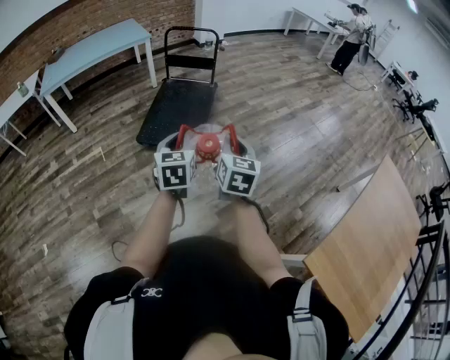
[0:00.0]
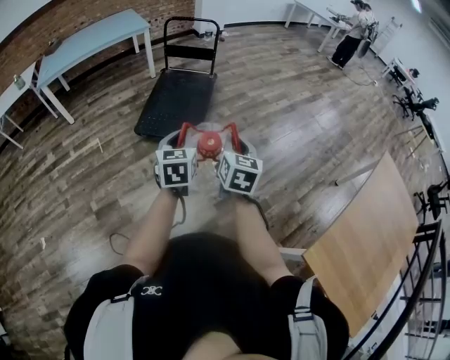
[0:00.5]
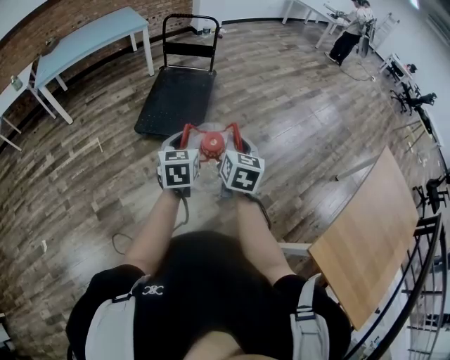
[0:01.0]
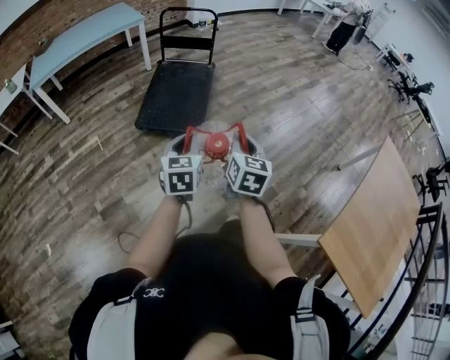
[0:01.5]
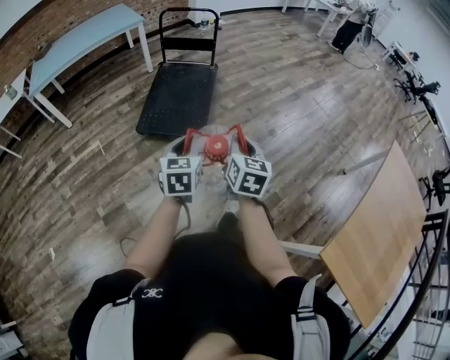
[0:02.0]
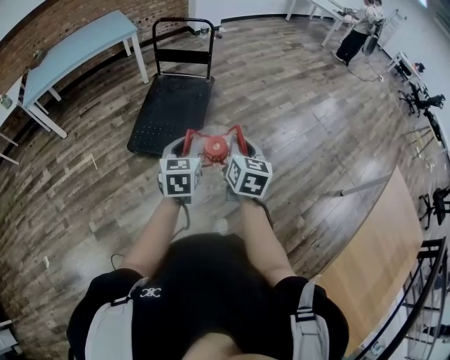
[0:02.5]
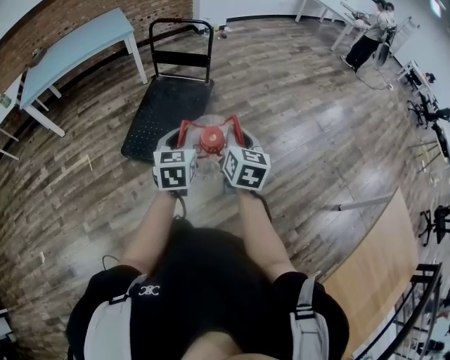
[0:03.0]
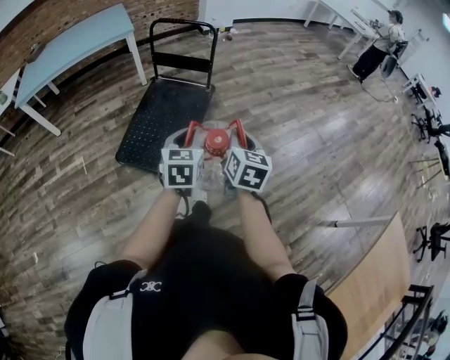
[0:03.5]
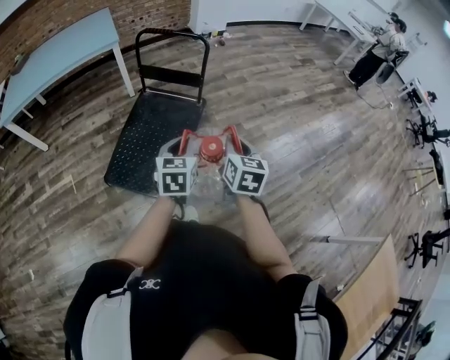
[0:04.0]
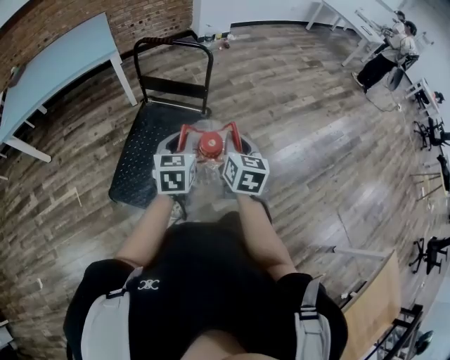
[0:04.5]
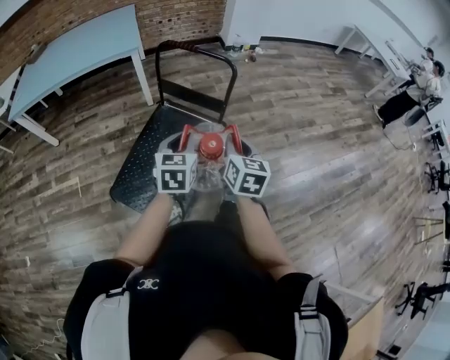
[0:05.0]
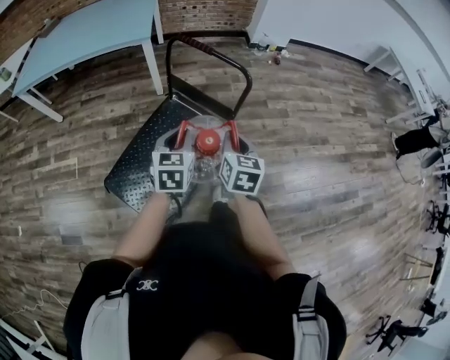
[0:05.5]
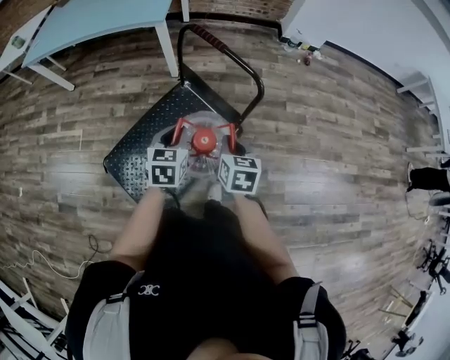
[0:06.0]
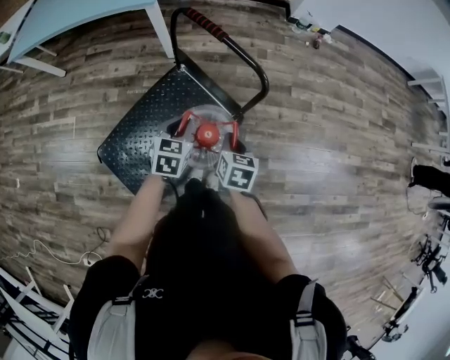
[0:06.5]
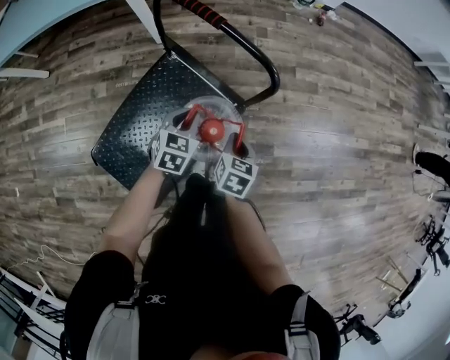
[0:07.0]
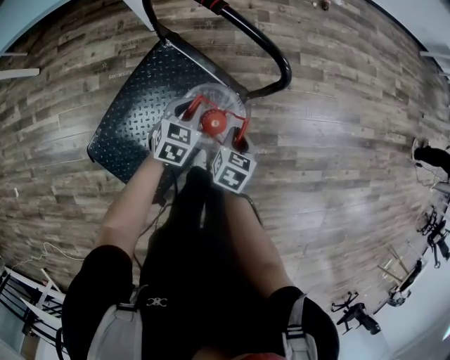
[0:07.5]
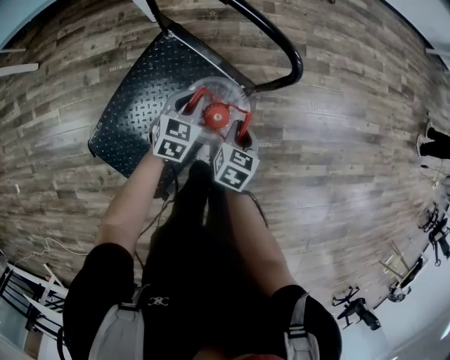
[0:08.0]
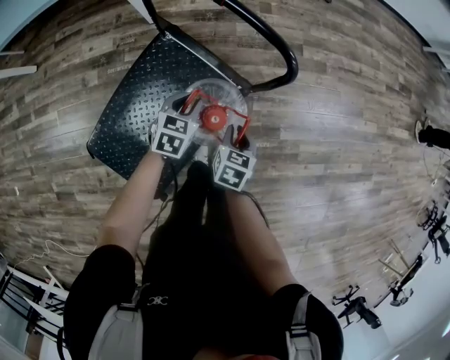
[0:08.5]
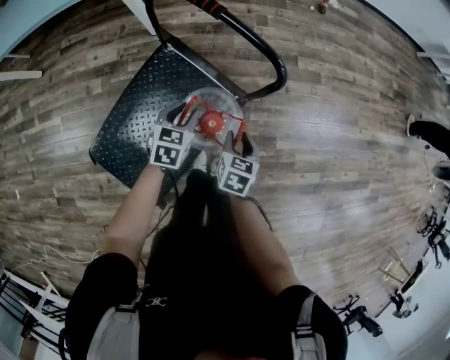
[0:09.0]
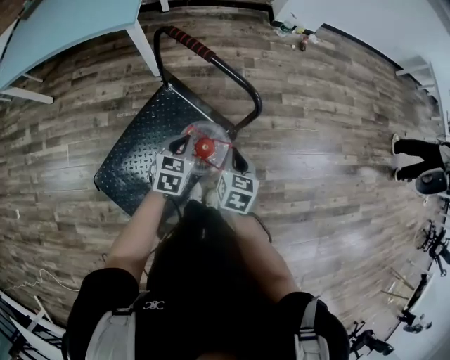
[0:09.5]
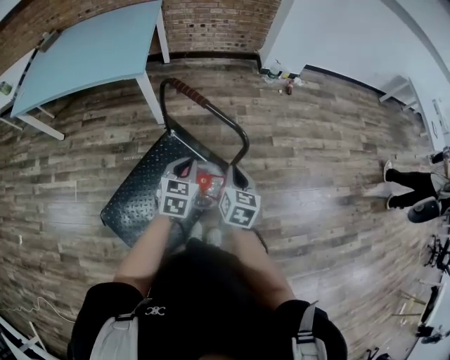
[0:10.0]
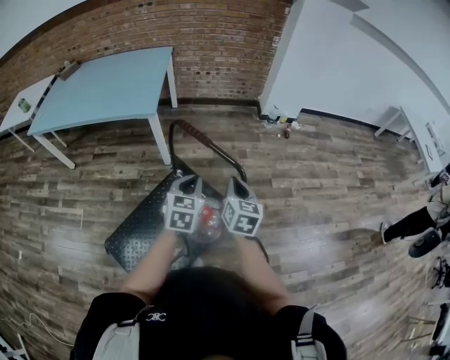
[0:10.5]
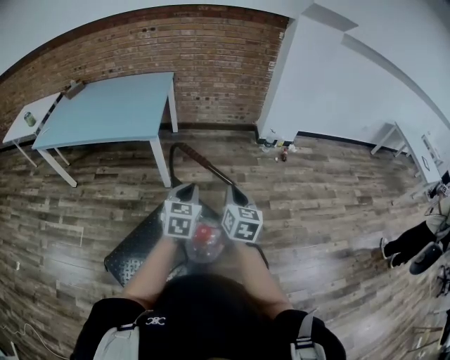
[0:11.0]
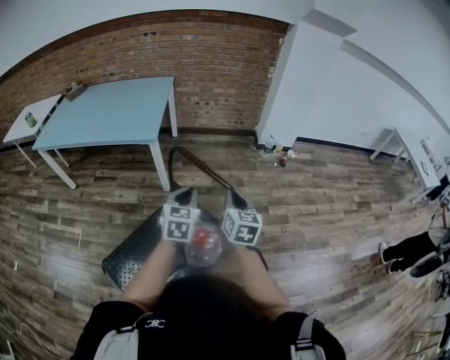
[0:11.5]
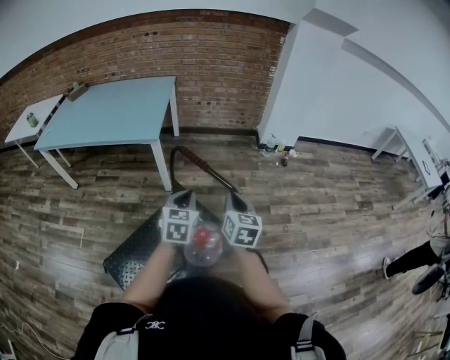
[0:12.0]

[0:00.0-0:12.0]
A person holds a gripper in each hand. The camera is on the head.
0:00.0 to 0:02.0: The two grippers go about 5 cm downward.
0:02.0 to 0:04.0: Both grippers are carried forward, some 50 cm.
0:04.0 to 0:06.0: The right gripper ends up roughly 40 cm from where it was, and rotates roughly 40 degrees; the left gripper shifts by approximately 40 cm, and turns by approximately 30 degrees.
0:06.0 to 0:08.0: Both grippers travel together downward, some 25 cm. The left gripper turns by roughly 30 degrees. Meanwhile the right gripper turns by about 30 degrees.
0:08.0 to 0:10.0: Both grippers travel together upward, about 25 cm. The left gripper opens, then closes again. The right gripper changes its angle by some 20 degrees, and opens, then closes once more.
0:10.0 to 0:12.0: Both grippers travel together upward, about 10 cm.

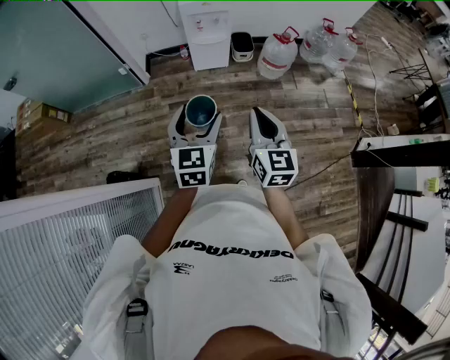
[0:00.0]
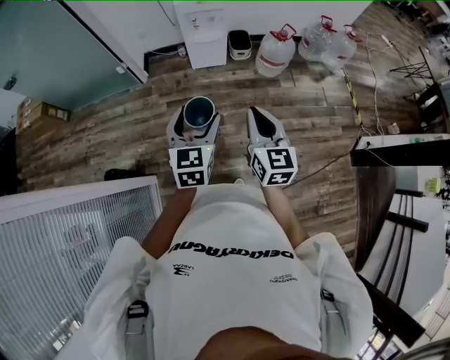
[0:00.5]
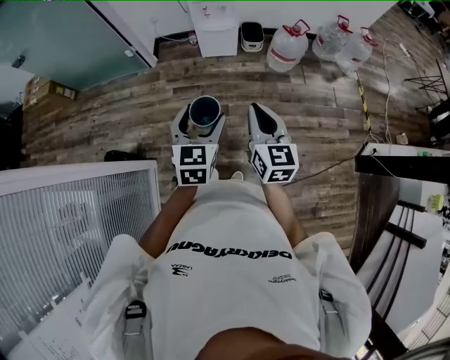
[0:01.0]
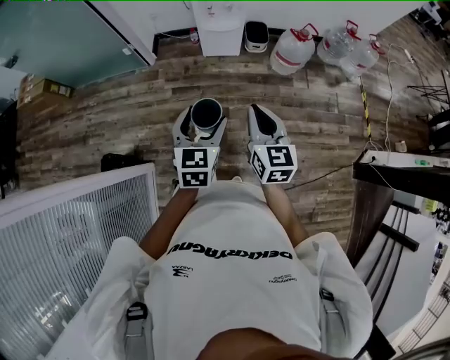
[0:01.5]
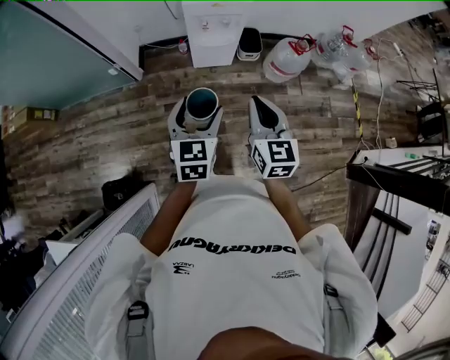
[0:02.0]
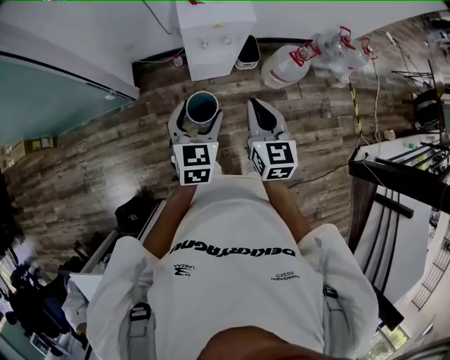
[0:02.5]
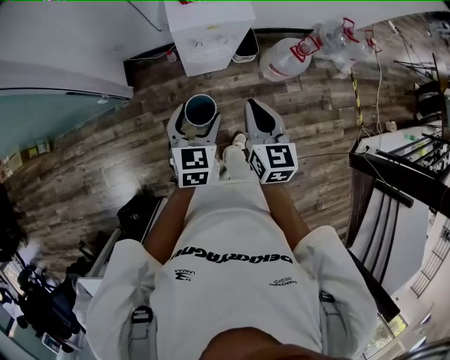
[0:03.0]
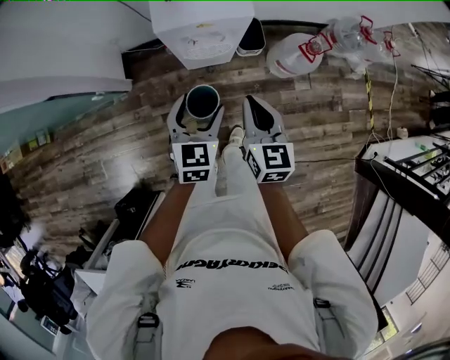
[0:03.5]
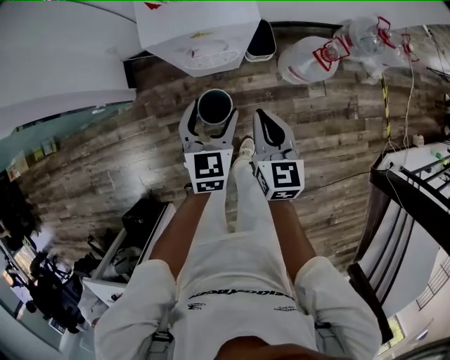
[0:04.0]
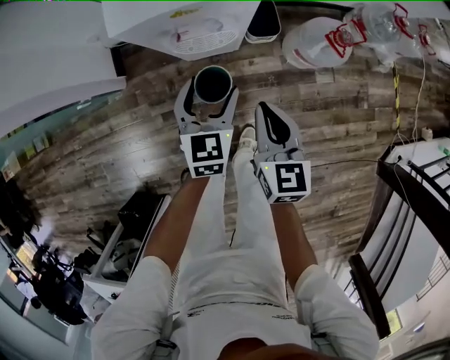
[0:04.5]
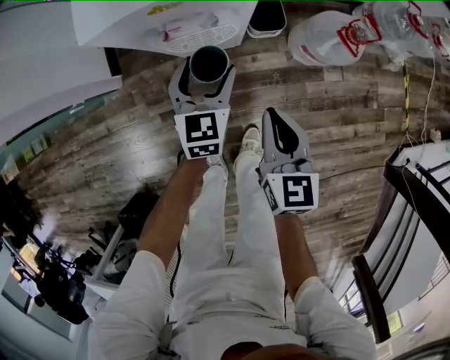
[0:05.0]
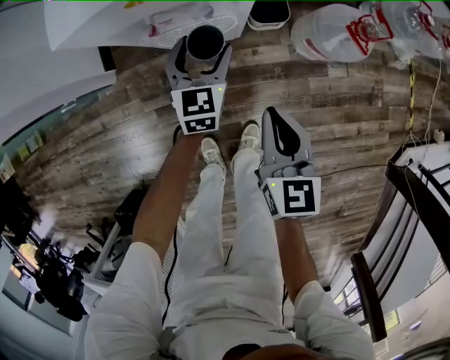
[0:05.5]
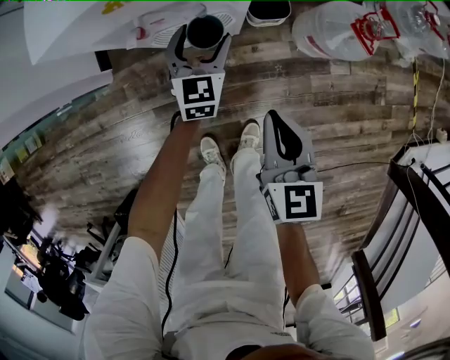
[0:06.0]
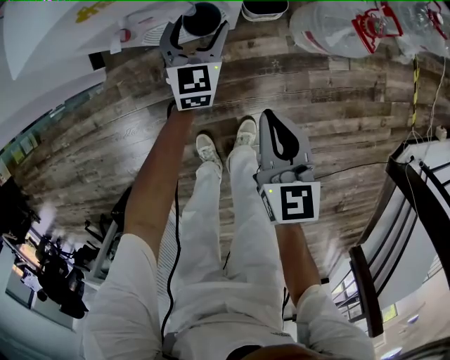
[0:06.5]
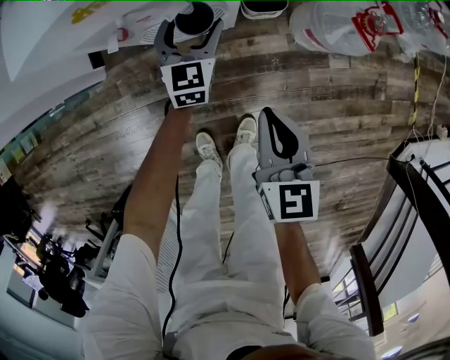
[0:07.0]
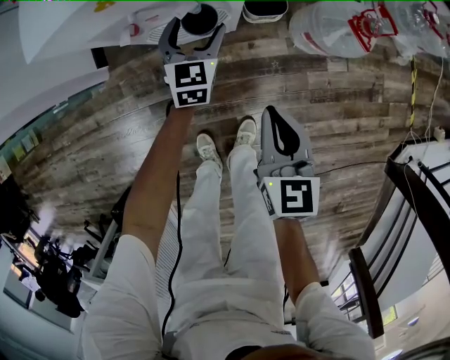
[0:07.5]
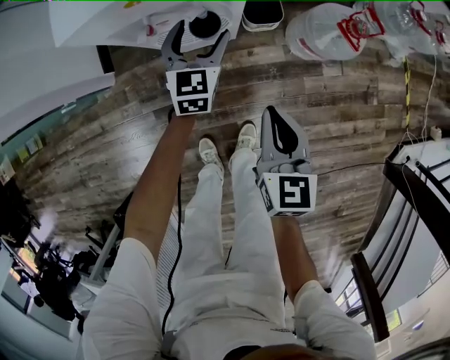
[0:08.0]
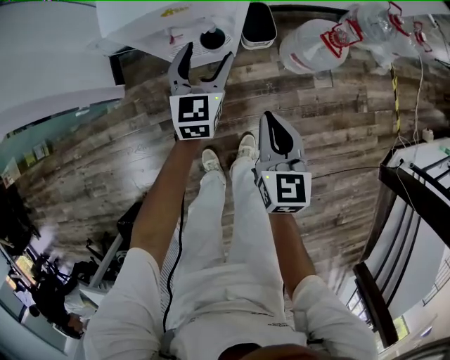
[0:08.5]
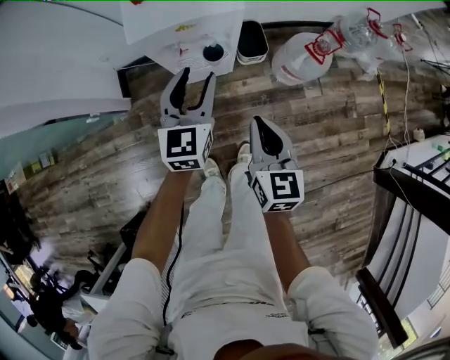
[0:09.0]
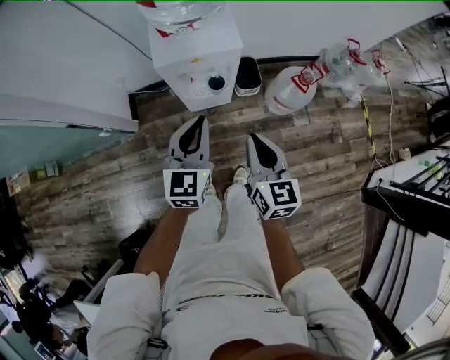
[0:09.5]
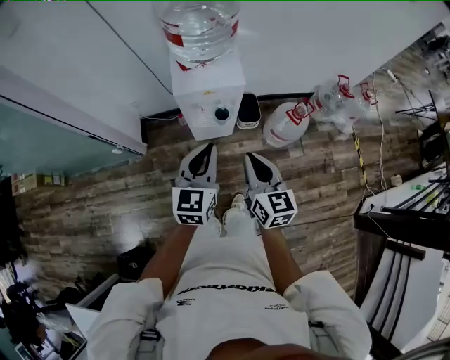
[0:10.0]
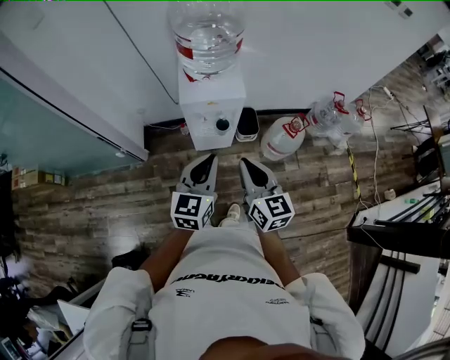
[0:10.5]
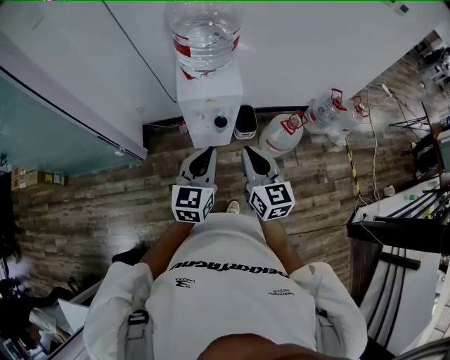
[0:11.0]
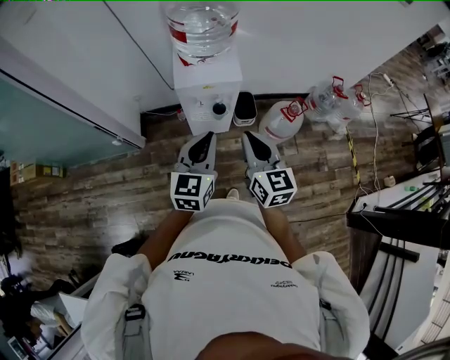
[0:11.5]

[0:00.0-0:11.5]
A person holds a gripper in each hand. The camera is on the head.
0:00.0 to 0:02.0: The two grippers go approximately 30 cm forward.
0:02.0 to 0:04.0: The grippers both shift forward and downward by some 40 cm.
0:04.0 to 0:06.0: The left gripper shifts roughly 35 cm downward and forward, while the right gripper travels downward by roughly 20 cm.
0:06.0 to 0:07.5: There are only small adjustments of the grippers.
0:07.5 to 0:09.5: The right gripper moves upward, approximately 30 cm. The left gripper goes approximately 50 cm upward and backward, and closes.
0:09.5 to 0:11.5: The left gripper moves upward and backward, some 15 cm. The right gripper travels upward by about 15 cm.

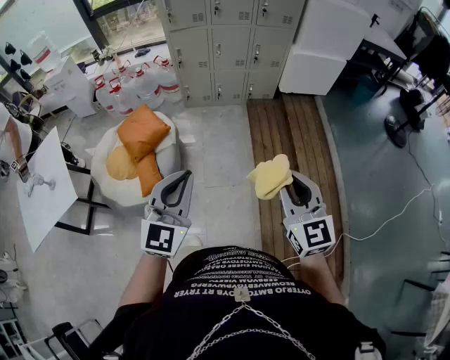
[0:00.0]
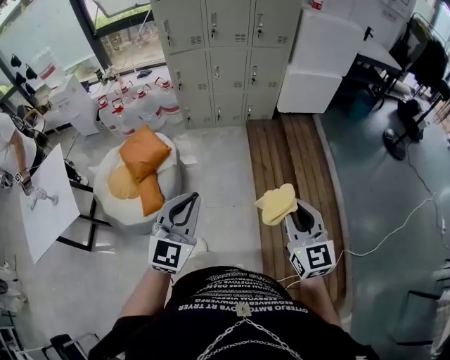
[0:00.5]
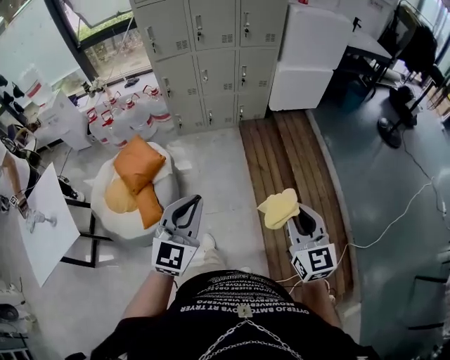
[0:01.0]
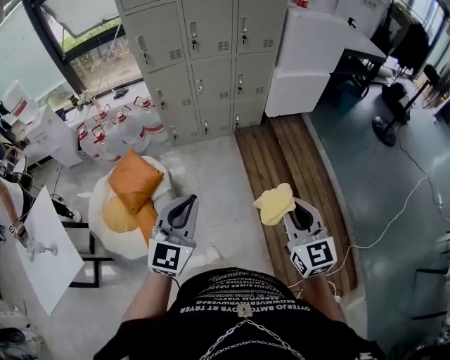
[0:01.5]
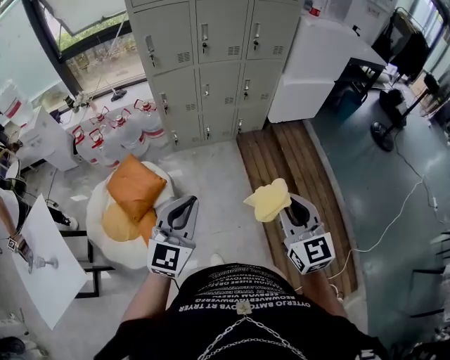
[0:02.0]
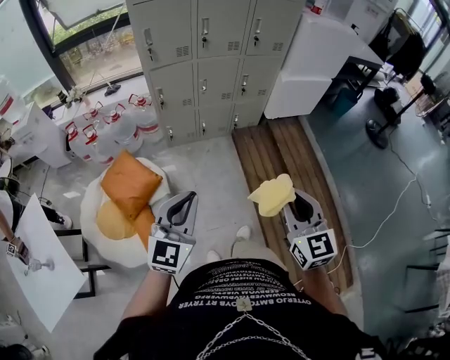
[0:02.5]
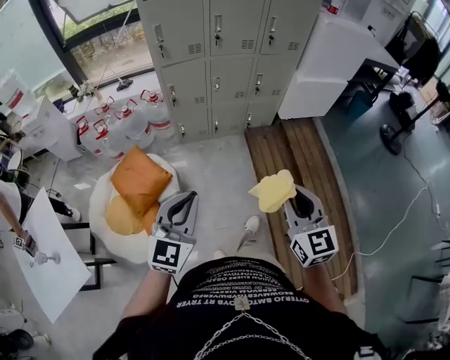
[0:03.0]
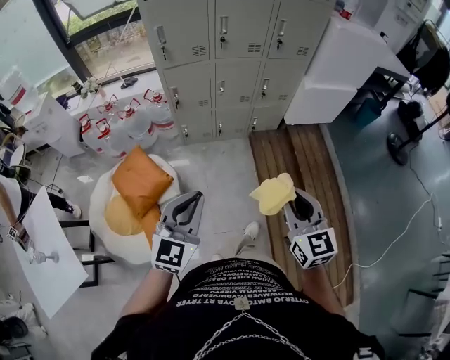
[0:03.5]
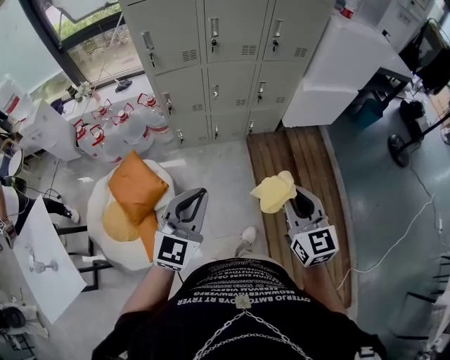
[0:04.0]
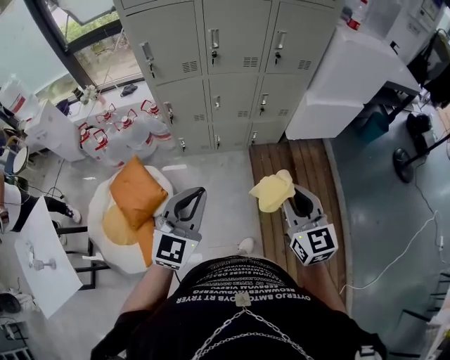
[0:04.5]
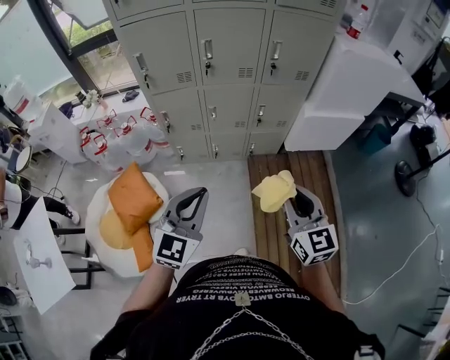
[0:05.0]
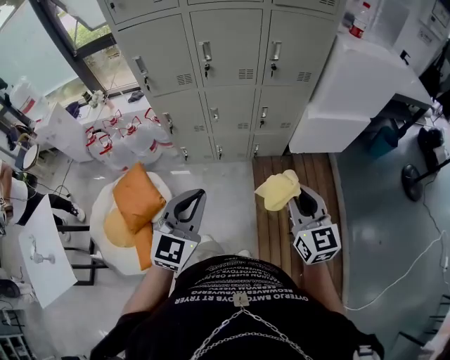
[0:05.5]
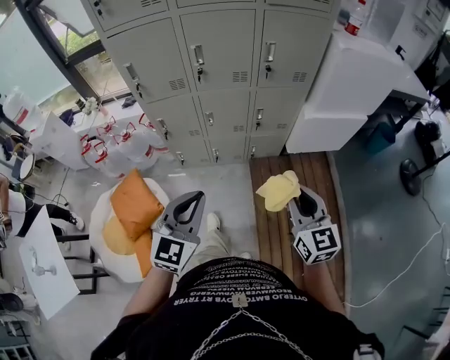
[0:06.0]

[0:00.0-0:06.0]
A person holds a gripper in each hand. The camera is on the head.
0:00.0 to 0:02.0: Both grippers travel together forward and to the left, approximately 25 cm.
0:02.0 to 0:04.0: Both grippers move forward, some 20 cm.
0:04.0 to 0:06.0: The two grippers go some 20 cm forward and to the right.
